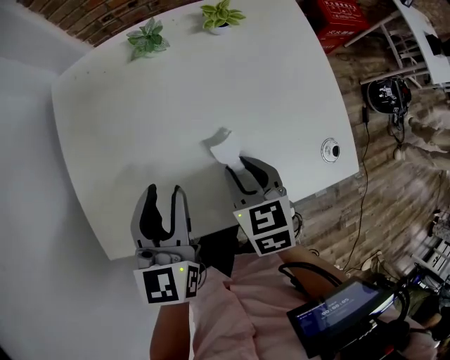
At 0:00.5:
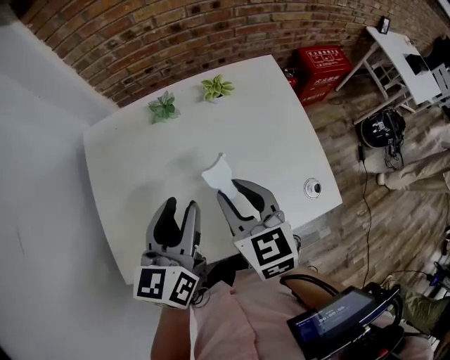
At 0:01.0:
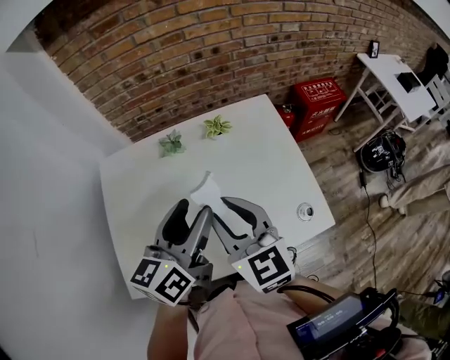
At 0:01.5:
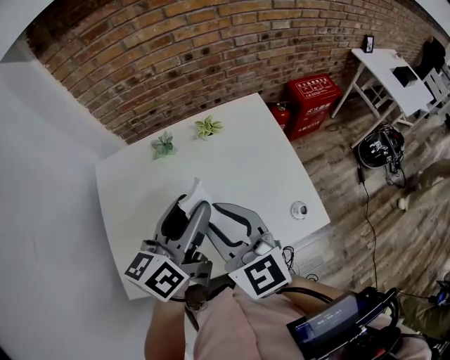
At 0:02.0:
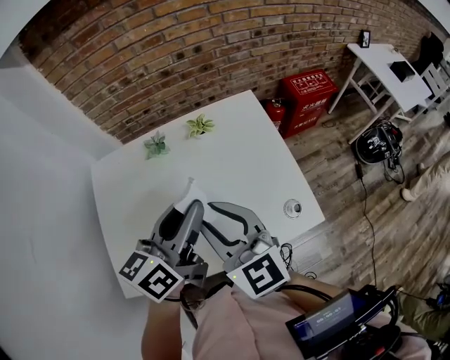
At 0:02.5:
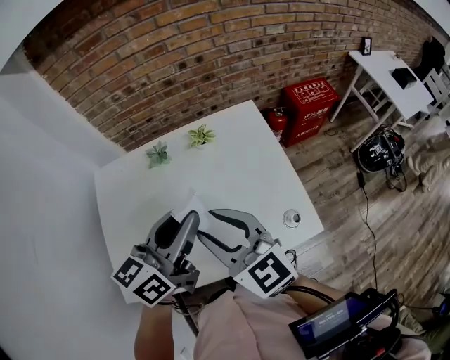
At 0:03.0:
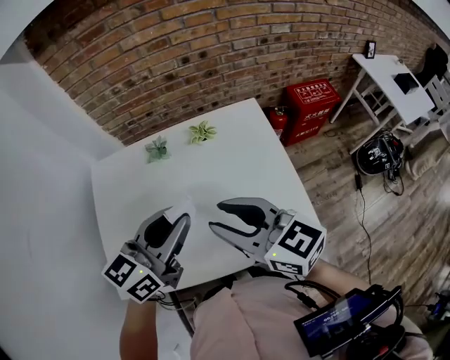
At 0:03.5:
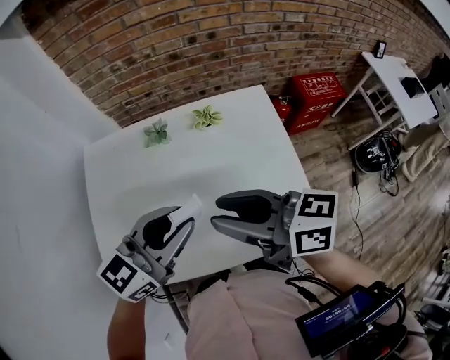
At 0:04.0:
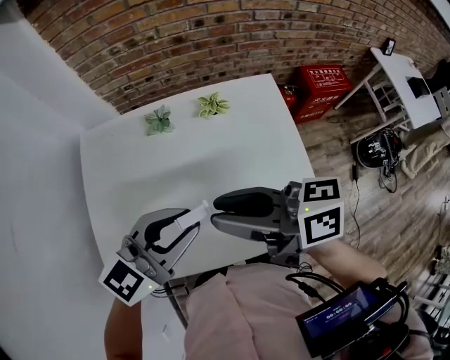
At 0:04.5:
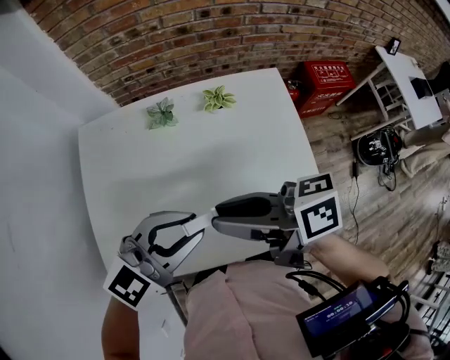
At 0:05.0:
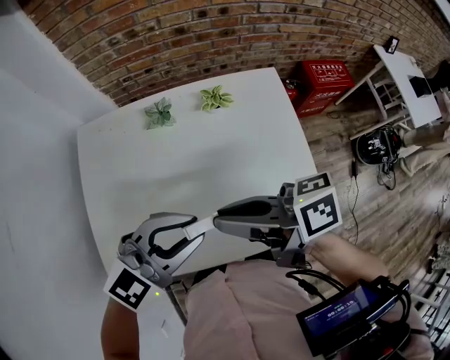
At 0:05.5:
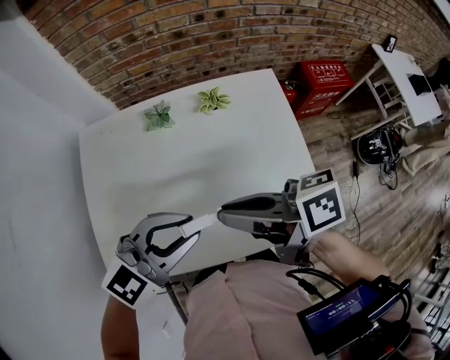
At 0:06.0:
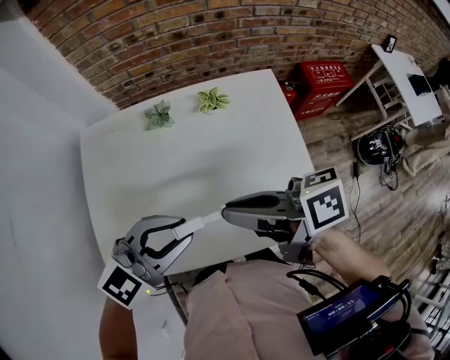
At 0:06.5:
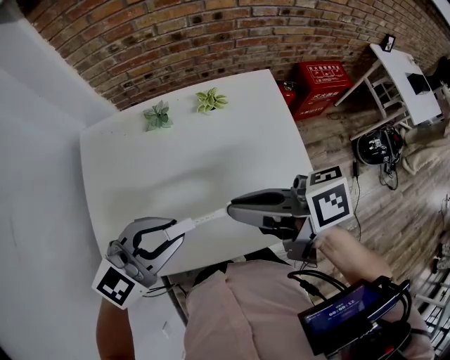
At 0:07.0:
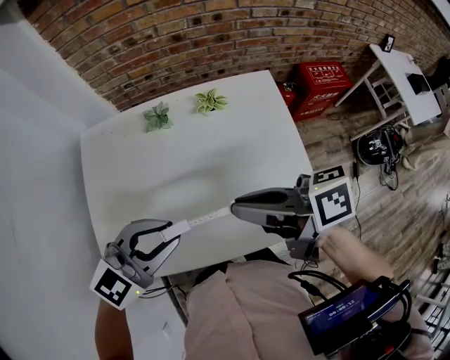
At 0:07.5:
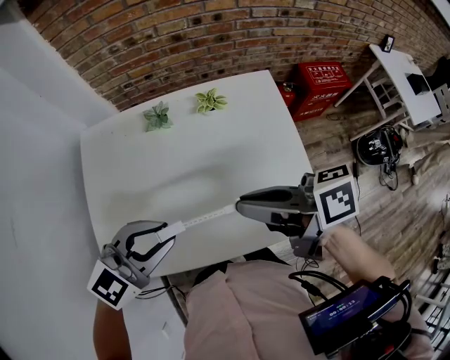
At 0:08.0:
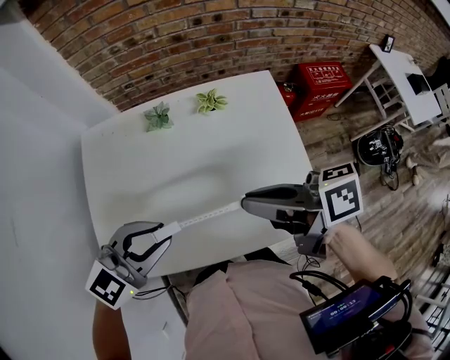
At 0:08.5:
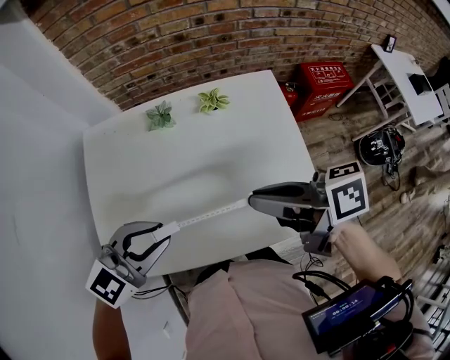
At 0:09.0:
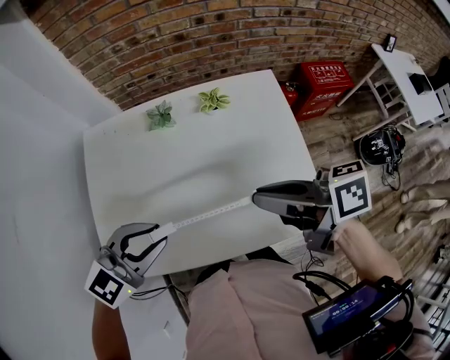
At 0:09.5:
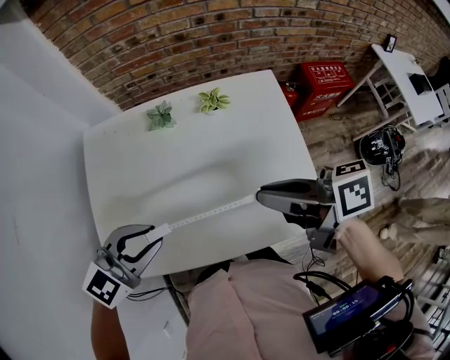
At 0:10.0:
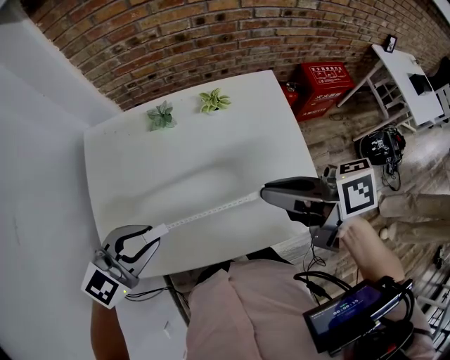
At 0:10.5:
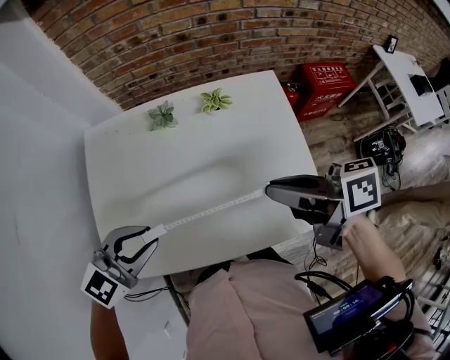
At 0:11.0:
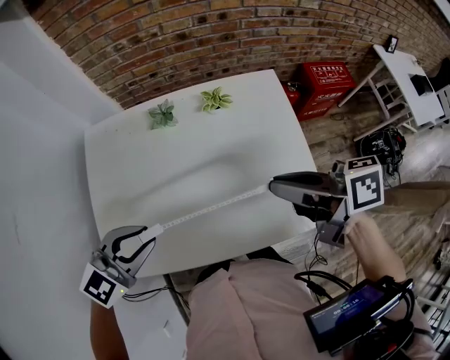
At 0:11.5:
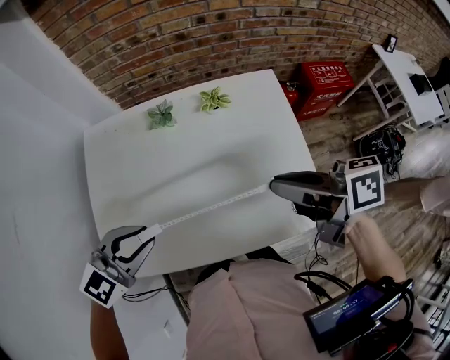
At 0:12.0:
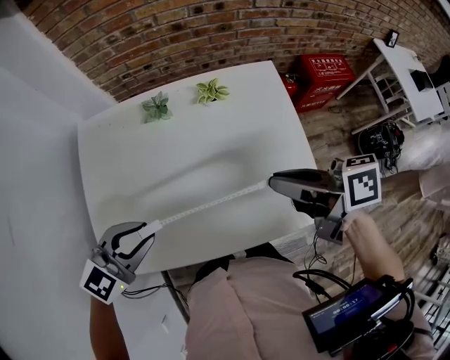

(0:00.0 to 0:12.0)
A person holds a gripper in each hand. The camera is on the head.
0:00.0 - 0:02.0: The left gripper moves upward and to the right, approximately 20 cm, and swivels about 40 degrees. The right gripper moves upward, some 25 cm, and angles its fingers upward, by some 40 degrees.
0:02.0 - 0:04.0: The right gripper changes its angle by some 60 degrees. The left gripper turns by some 40 degrees.
0:04.0 - 0:06.0: The right gripper closes.
0:06.0 - 0:08.0: The left gripper ends up roughly 5 cm from where it was.
0:08.0 - 0:10.0: The grippers move only a little.
0:10.0 - 0:12.0: The grippers move only a little.

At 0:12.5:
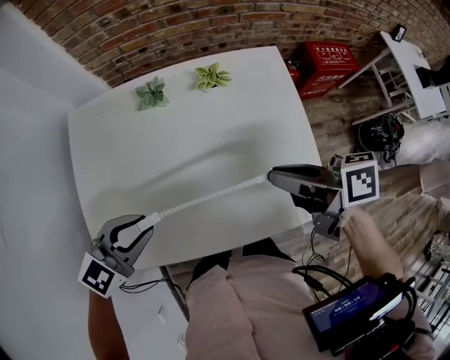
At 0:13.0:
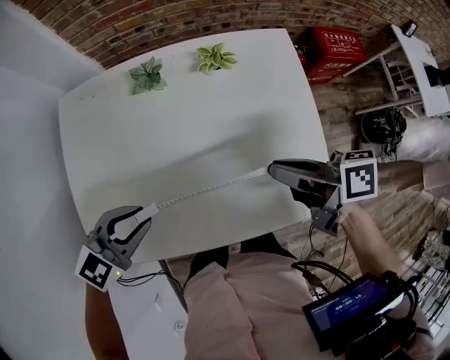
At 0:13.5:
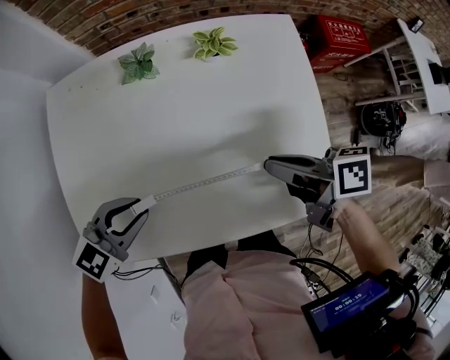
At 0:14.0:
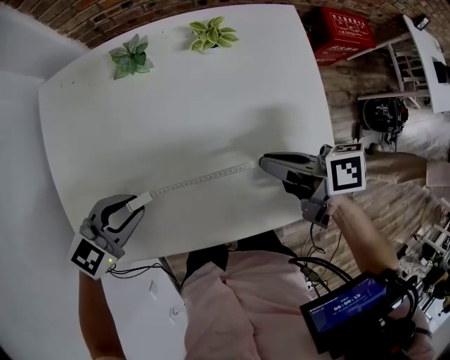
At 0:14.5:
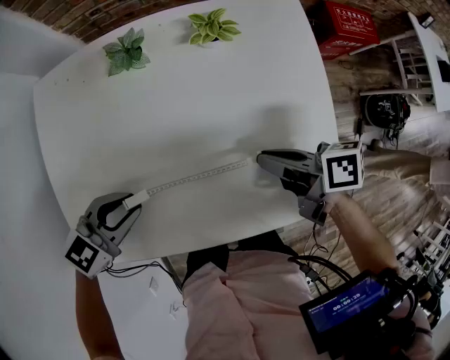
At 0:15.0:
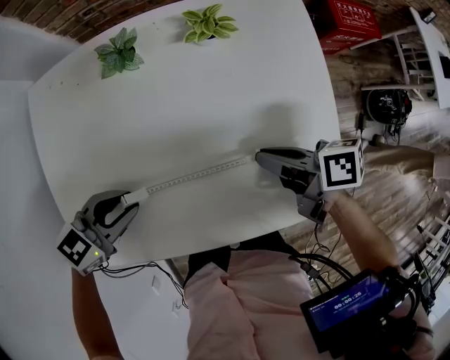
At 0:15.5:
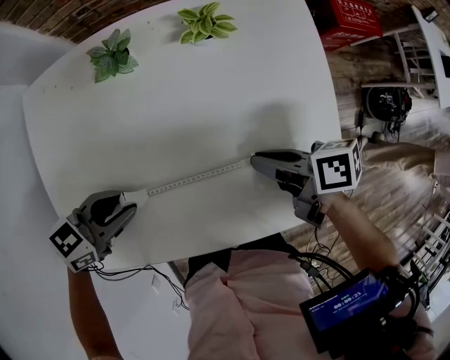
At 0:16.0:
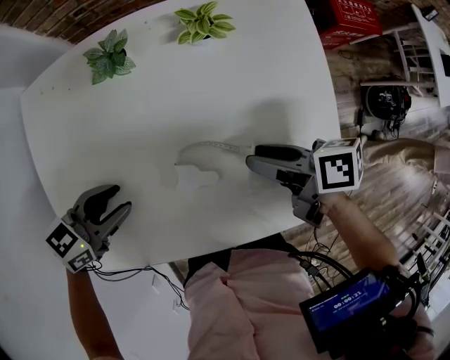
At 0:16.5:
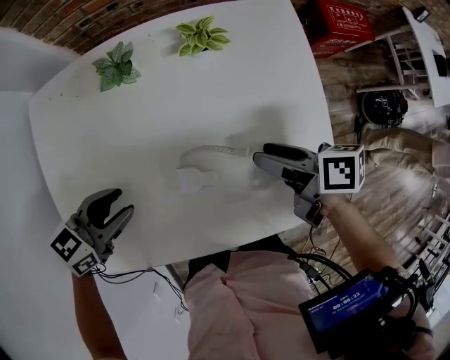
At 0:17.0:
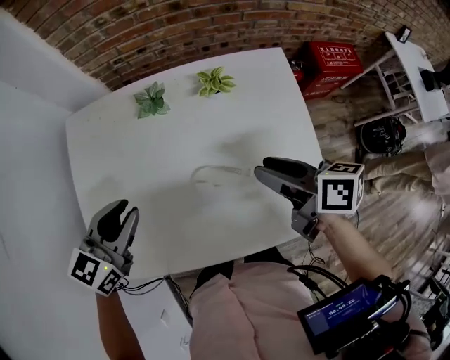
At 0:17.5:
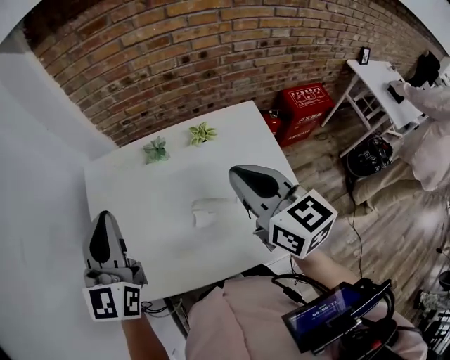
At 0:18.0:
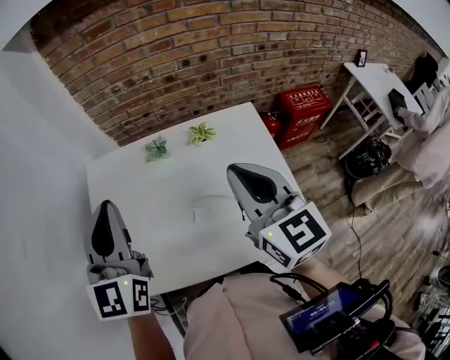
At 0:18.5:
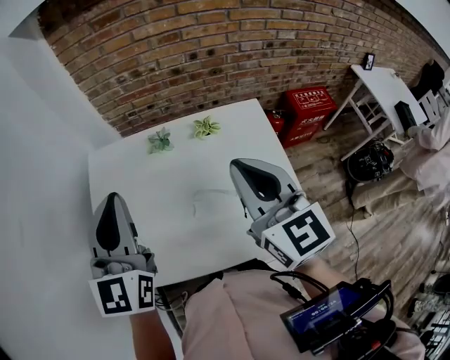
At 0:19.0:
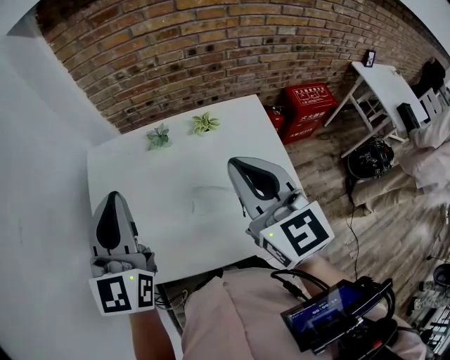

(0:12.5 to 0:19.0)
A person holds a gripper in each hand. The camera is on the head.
0:12.5 - 0:14.5: The grippers both shift downward by approximately 15 cm.
0:14.5 - 0:17.0: Both grippers travel together upward, some 10 cm. The right gripper opens; the left gripper swivels about 30 degrees.
0:17.0 - 0:19.0: Both grippers move upward, about 20 cm. The left gripper changes its angle by approximately 40 degrees, and closes its fingers. The right gripper rotates around the line of its fingers by approximately 50 degrees, counterclockwise from behind, and closes up.

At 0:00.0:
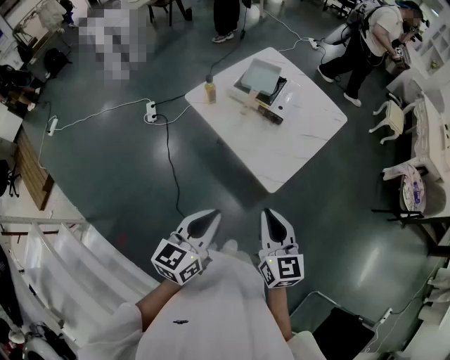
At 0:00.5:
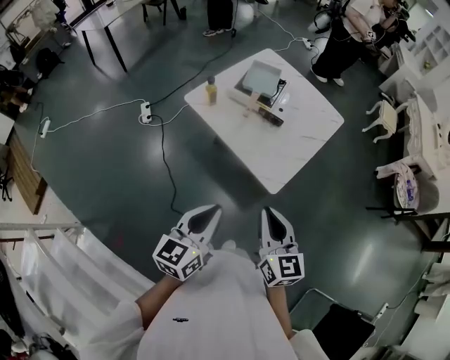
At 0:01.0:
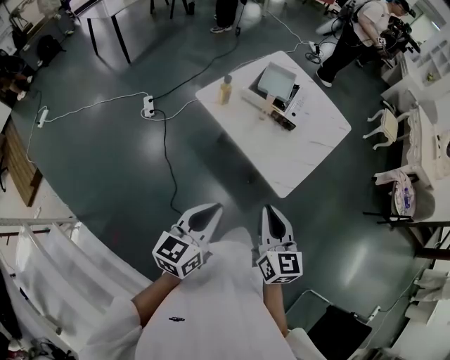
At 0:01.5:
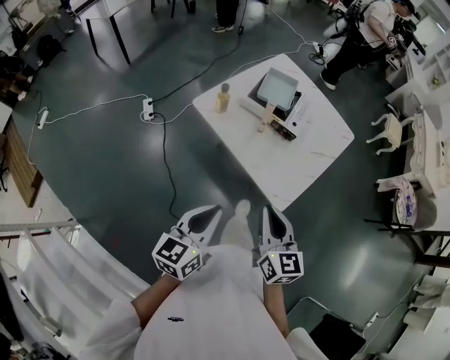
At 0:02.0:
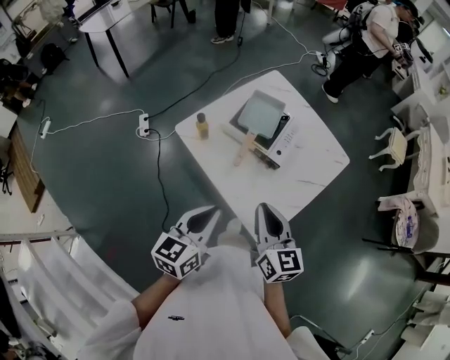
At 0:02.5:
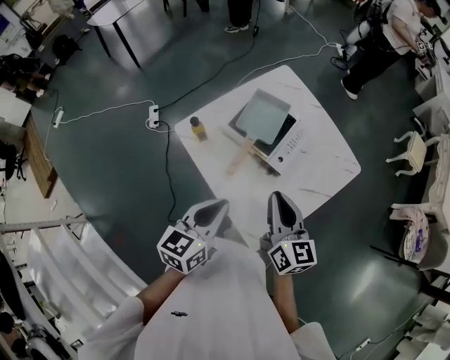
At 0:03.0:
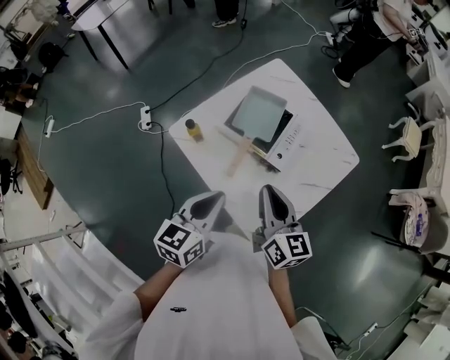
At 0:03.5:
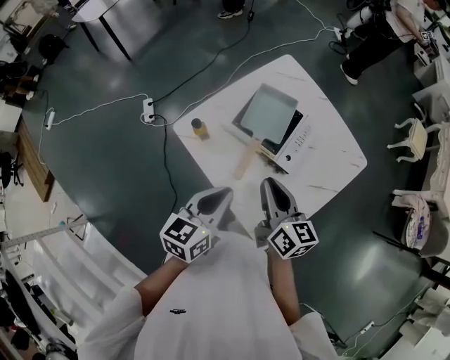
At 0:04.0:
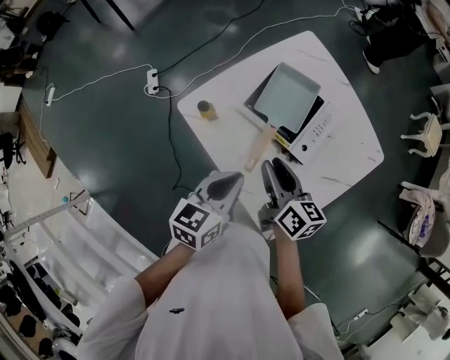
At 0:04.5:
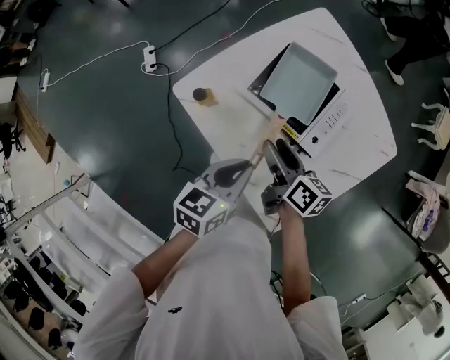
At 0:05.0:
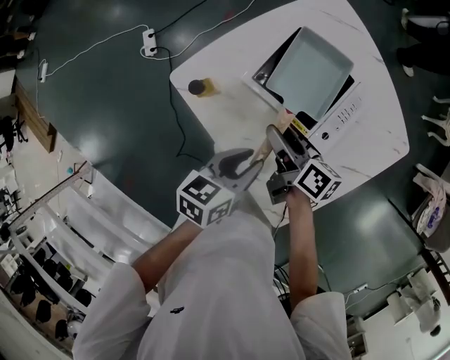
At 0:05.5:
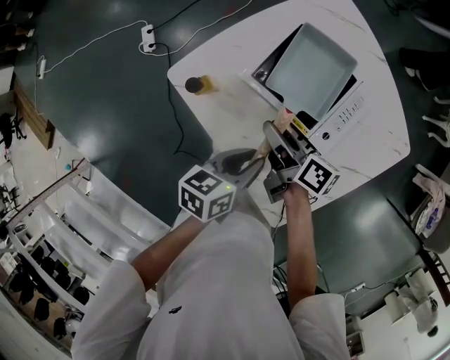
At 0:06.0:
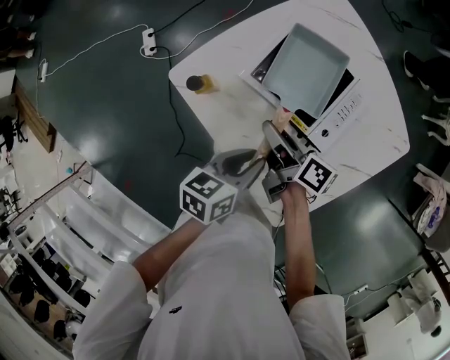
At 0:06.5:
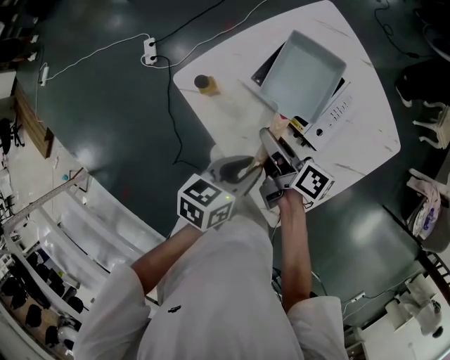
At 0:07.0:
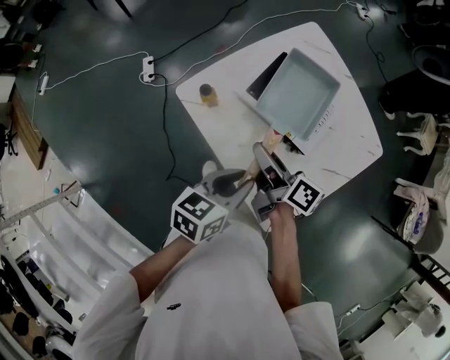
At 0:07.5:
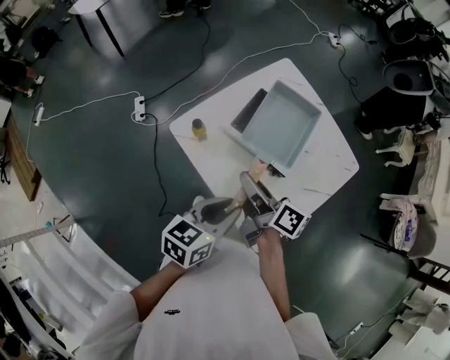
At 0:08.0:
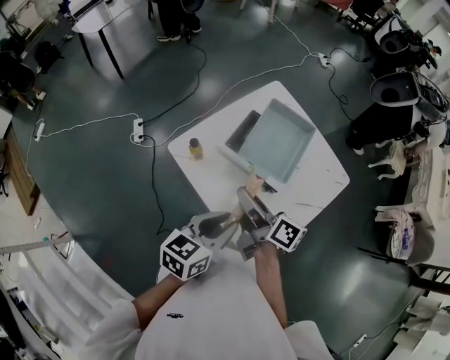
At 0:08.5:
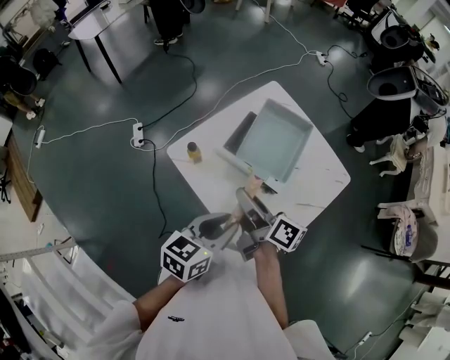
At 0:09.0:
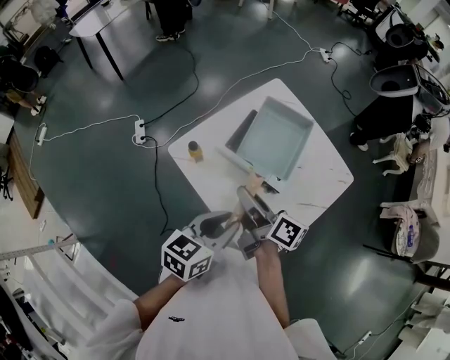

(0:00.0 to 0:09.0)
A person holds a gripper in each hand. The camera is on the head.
0:00.0 - 0:02.0: The grippers both shift forward by some 25 cm.
0:02.0 - 0:04.5: The grippers both shift forward and downward by roughly 30 cm. The right gripper rotates about 40 degrees, and opens up.
0:04.5 - 0:07.0: The left gripper shifts about 5 cm backward, and opens up. Meanwhile the right gripper moves upward, some 5 cm.
0:07.0 - 0:09.0: The two grippers go some 10 cm upward.
